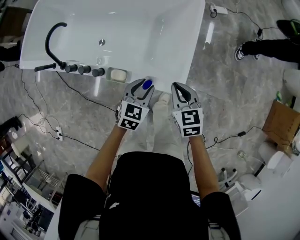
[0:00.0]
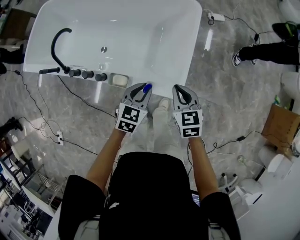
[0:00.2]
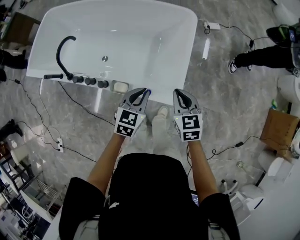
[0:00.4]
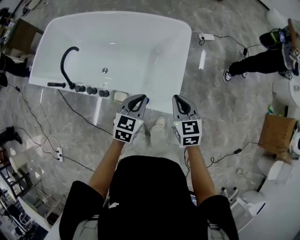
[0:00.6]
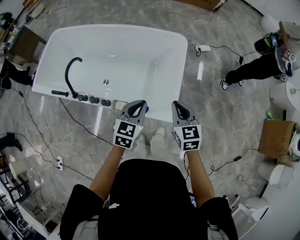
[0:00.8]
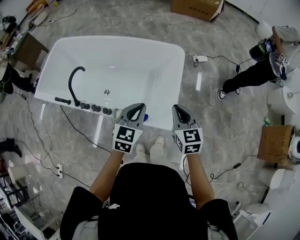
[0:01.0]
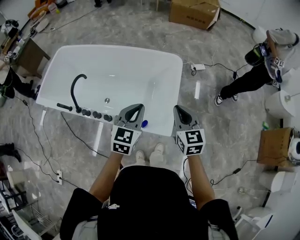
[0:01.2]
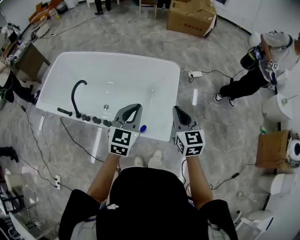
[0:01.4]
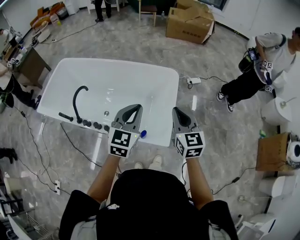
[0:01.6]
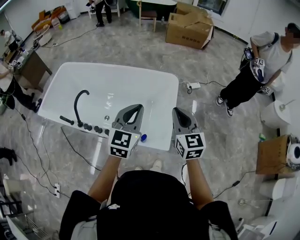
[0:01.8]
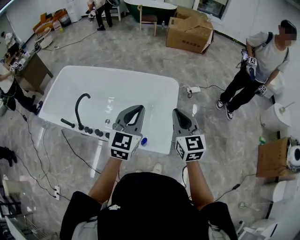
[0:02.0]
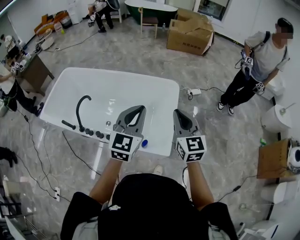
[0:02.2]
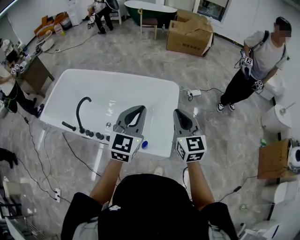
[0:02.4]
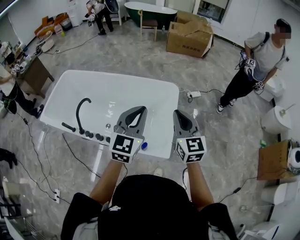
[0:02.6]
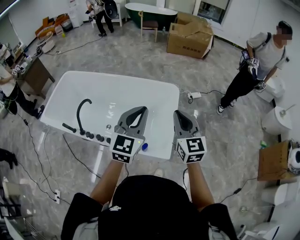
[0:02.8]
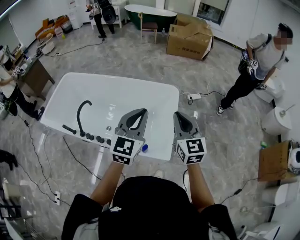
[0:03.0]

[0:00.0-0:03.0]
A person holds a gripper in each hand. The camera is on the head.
0:00.0 to 0:01.6: The grippers both shift upward by some 35 cm. The left gripper swivels about 30 degrees, and closes up. Meanwhile the right gripper turns by roughly 30 degrees.
0:01.6 to 0:03.0: Both grippers move upward, about 5 cm.

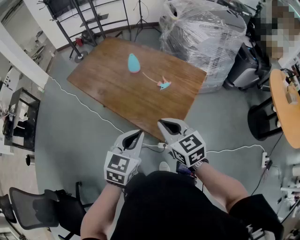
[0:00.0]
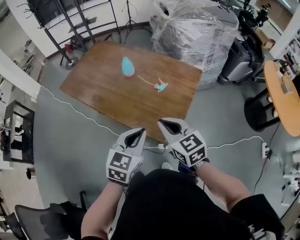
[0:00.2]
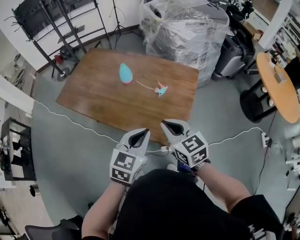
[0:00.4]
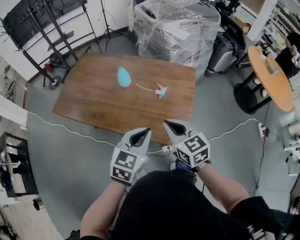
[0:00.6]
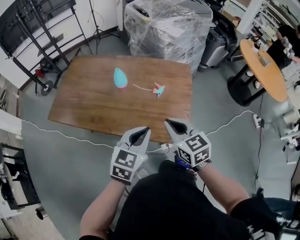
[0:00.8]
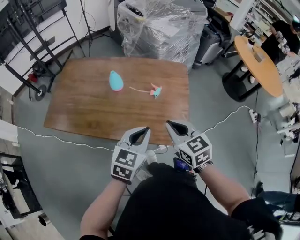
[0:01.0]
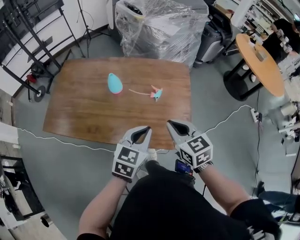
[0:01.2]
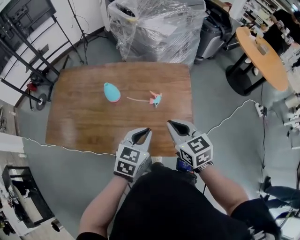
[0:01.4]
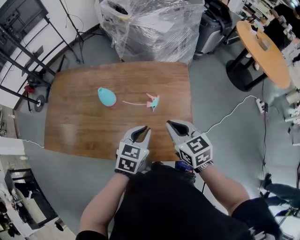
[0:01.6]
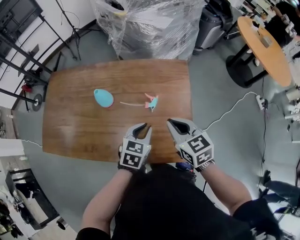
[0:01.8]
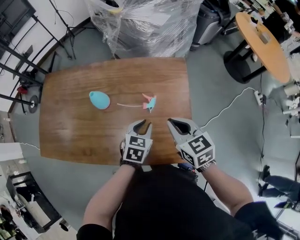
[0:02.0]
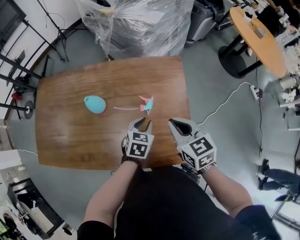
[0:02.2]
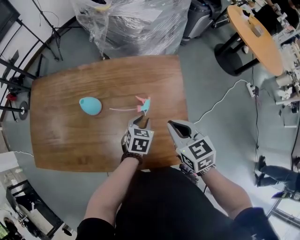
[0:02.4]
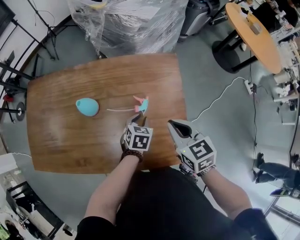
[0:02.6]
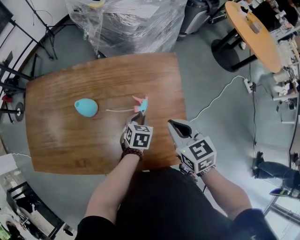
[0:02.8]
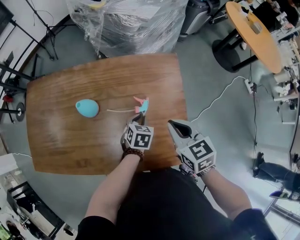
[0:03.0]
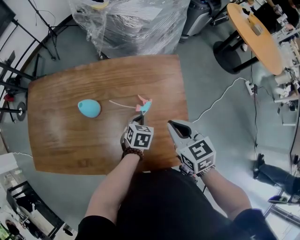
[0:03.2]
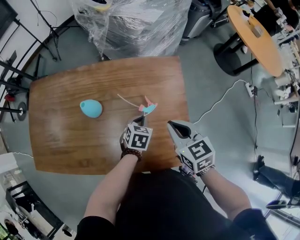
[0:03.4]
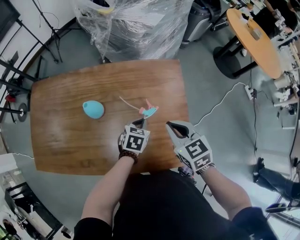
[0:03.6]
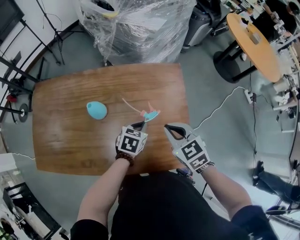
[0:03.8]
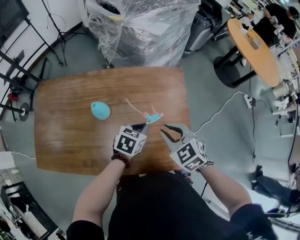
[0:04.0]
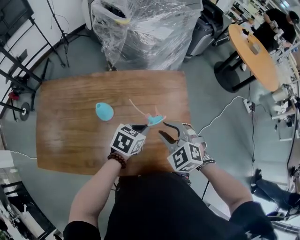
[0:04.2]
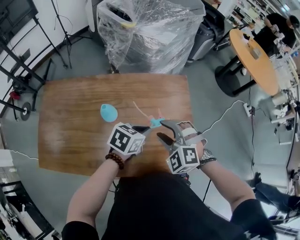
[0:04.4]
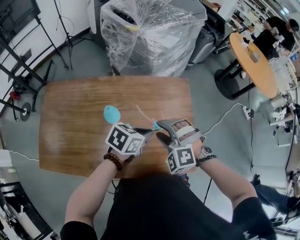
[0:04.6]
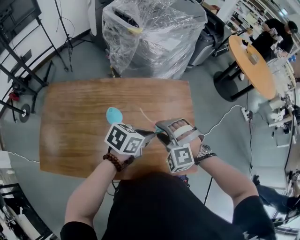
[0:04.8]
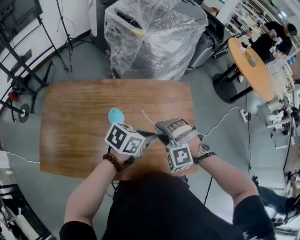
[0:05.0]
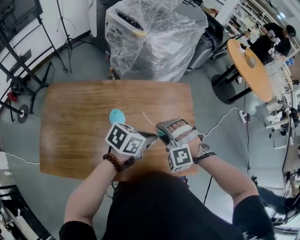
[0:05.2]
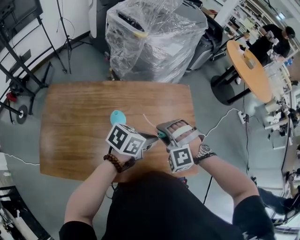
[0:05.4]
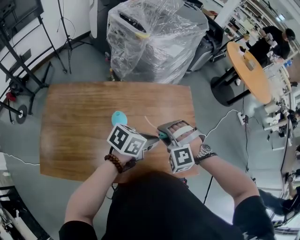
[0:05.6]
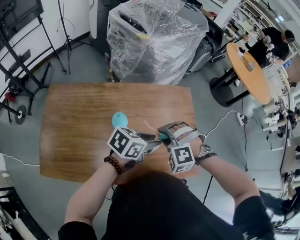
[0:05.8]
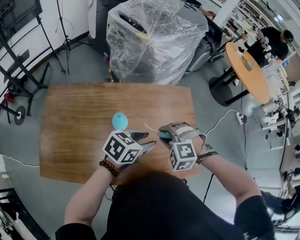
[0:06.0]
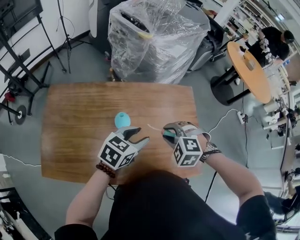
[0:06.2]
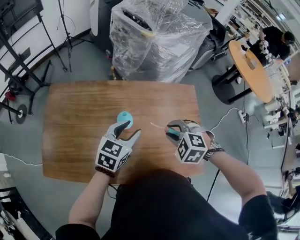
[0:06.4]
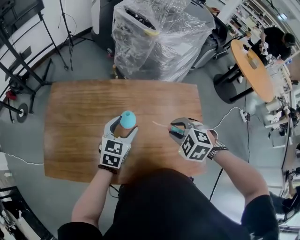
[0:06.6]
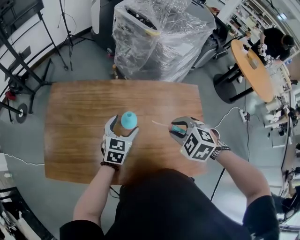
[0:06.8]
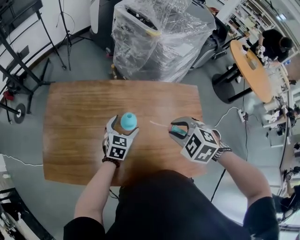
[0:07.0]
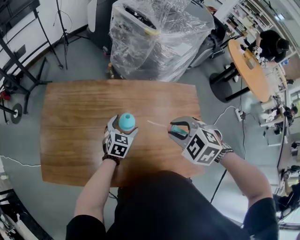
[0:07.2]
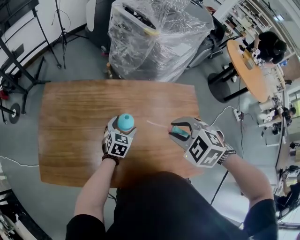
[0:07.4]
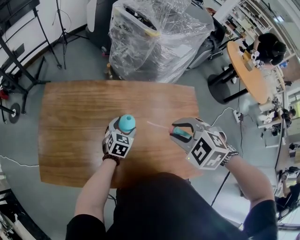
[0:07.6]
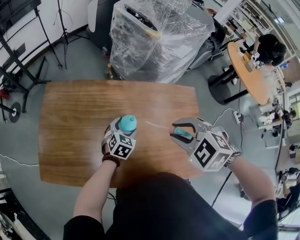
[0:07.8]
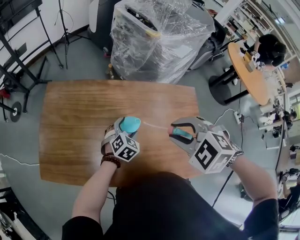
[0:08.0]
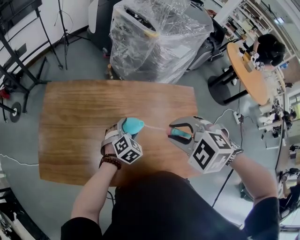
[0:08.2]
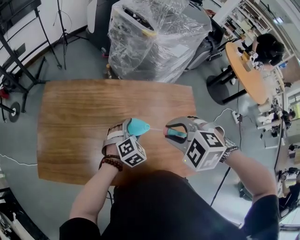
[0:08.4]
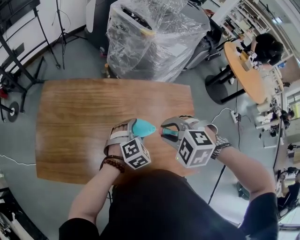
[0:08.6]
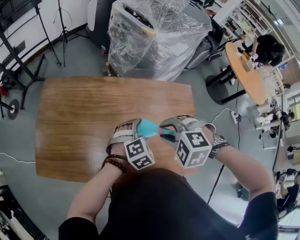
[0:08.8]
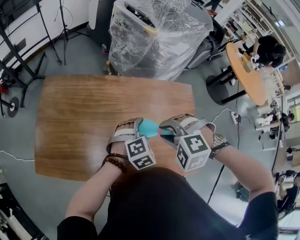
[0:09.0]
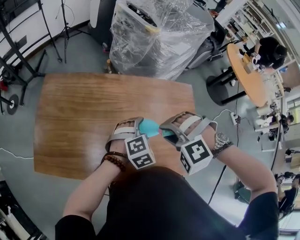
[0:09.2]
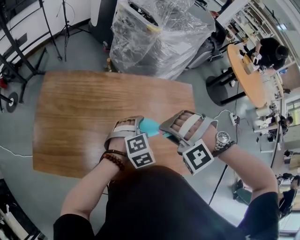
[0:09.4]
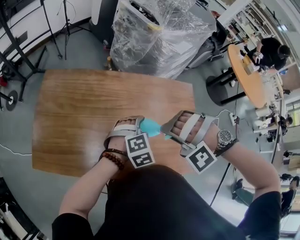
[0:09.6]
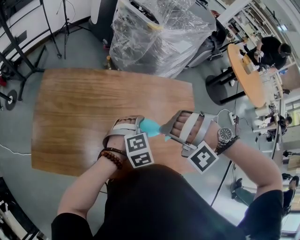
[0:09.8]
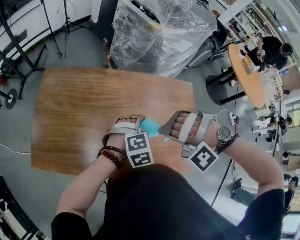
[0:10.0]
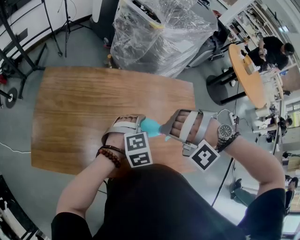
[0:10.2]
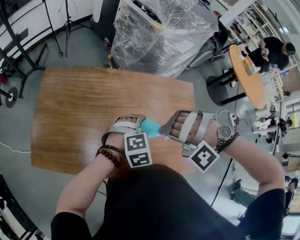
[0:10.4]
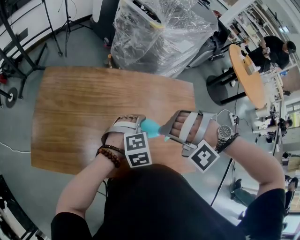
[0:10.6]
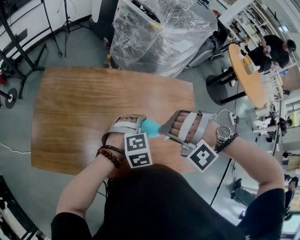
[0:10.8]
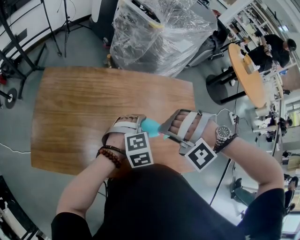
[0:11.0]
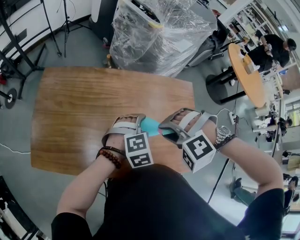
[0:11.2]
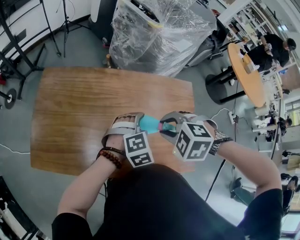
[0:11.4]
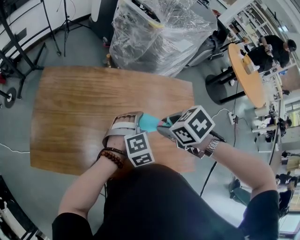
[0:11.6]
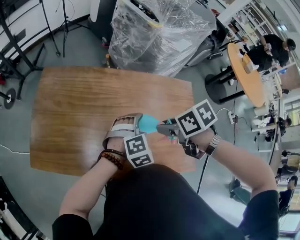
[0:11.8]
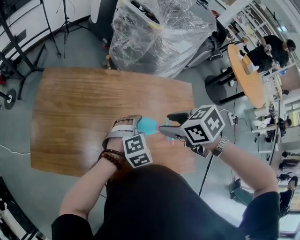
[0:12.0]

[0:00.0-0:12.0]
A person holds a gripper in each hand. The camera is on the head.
0:00.0 to 0:01.6: The left gripper moves approximately 25 cm, and turns by approximately 30 degrees. The right gripper moves approximately 15 cm, and turns by some 30 degrees.
0:01.6 to 0:03.0: The right gripper shifts by some 5 cm. Meanwhile the left gripper travels downward and forward by roughly 20 cm.
0:03.0 to 0:04.4: The left gripper is displaced upward by roughly 15 cm, and rotates some 30 degrees; the right gripper shifts roughly 10 cm to the left, rotates around the line of its fingers by some 60 degrees, counterclockwise from behind, and opens its fingers.
0:04.4 to 0:06.0: The left gripper travels upward by roughly 5 cm, and opens. The right gripper goes roughly 5 cm to the left, and swivels some 20 degrees.
0:06.0 to 0:07.6: The right gripper shifts some 10 cm upward, and changes its angle by roughly 20 degrees; the left gripper moves downward, roughly 15 cm, rotates roughly 40 degrees, and opens its fingers.
0:07.6 to 0:09.0: The left gripper goes some 15 cm upward, backward and to the right, and swivels approximately 40 degrees, while the right gripper rotates roughly 30 degrees.
0:09.0 to 0:10.4: The right gripper rotates around the line of its fingers by about 50 degrees, counterclockwise from behind.
0:10.4 to 0:12.0: The right gripper shifts by about 5 cm, rolls clockwise, seen from behind, by about 120 degrees, and opens.

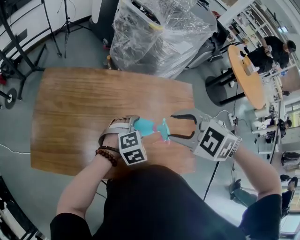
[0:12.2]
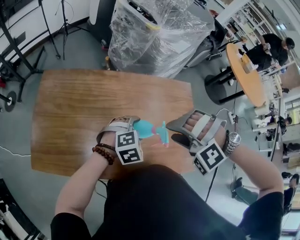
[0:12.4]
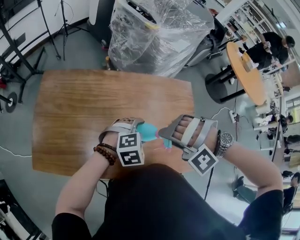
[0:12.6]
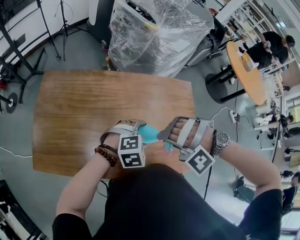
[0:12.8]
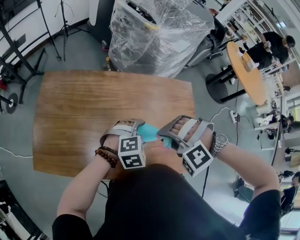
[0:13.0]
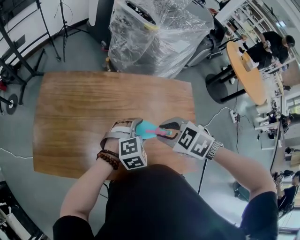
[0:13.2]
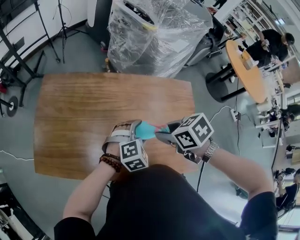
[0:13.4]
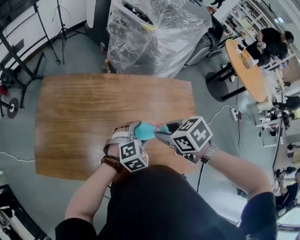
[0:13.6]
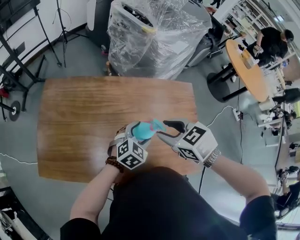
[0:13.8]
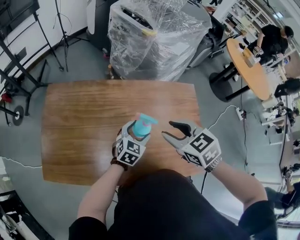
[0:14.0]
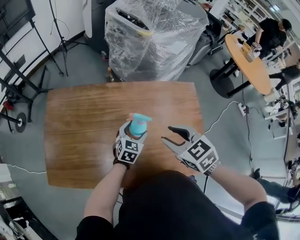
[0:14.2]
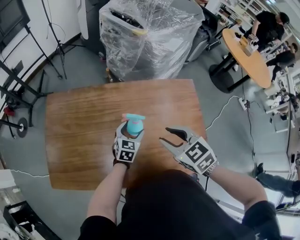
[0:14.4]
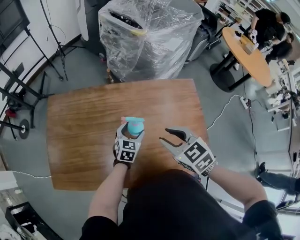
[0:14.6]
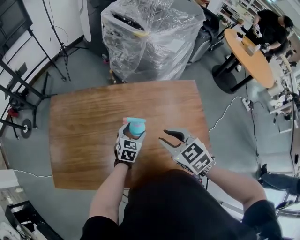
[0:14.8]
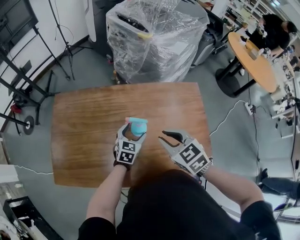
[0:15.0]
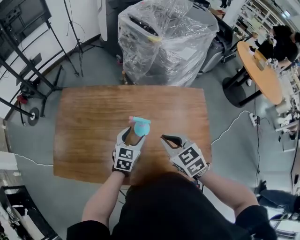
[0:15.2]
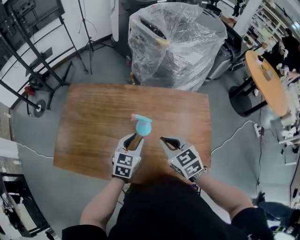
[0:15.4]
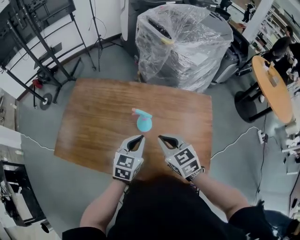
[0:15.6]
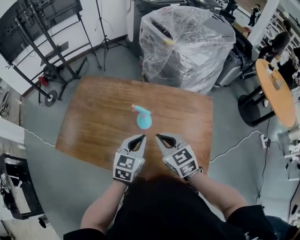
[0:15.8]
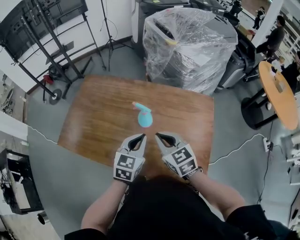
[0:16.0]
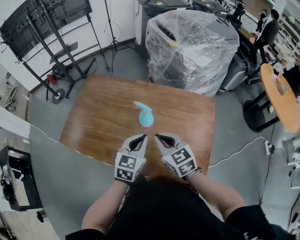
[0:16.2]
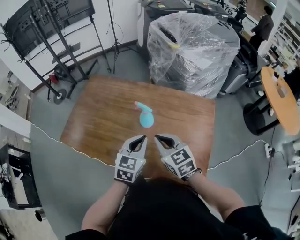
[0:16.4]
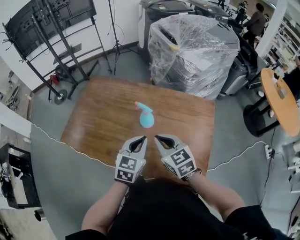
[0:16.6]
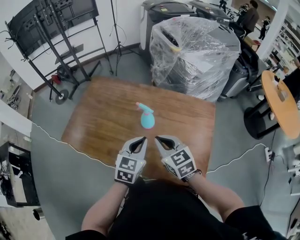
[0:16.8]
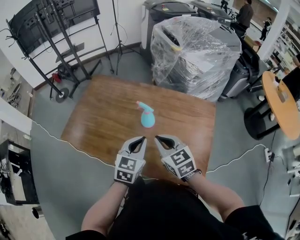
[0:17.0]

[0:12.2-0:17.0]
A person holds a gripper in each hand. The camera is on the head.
0:12.2 to 0:13.8: The right gripper moves downward, approximately 5 cm, and changes its angle by approximately 40 degrees. The left gripper rotates approximately 20 degrees.
0:13.8 to 0:15.4: The left gripper is displaced to the left by some 5 cm, goes downward and returns, roughly 5 cm each way, changes its angle by about 30 degrees, and closes its fingers, while the right gripper closes.
0:15.4 to 0:17.0: The left gripper shifts about 10 cm backward and upward; the right gripper shifts about 5 cm backward.

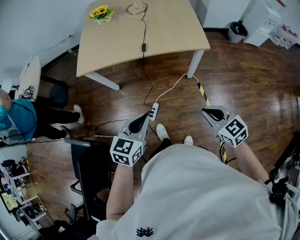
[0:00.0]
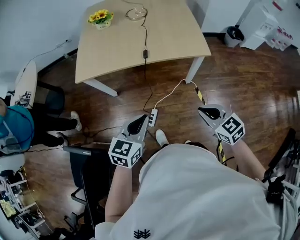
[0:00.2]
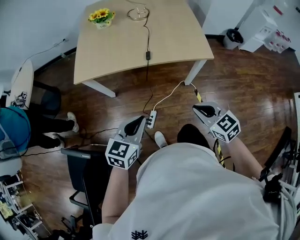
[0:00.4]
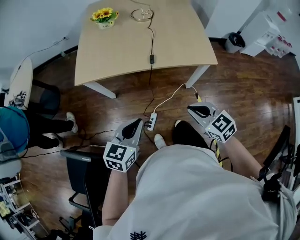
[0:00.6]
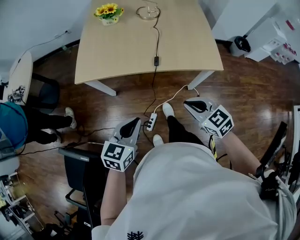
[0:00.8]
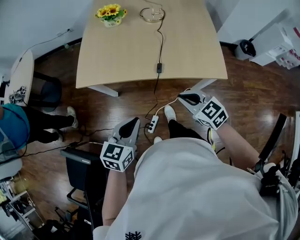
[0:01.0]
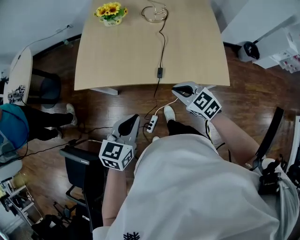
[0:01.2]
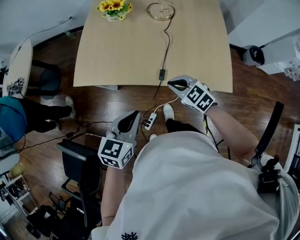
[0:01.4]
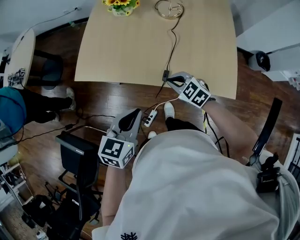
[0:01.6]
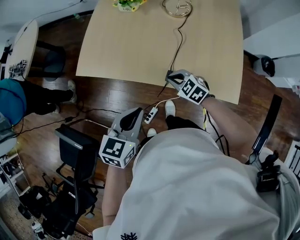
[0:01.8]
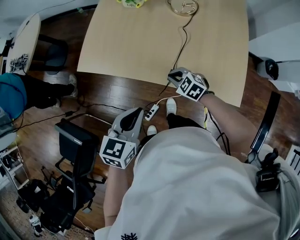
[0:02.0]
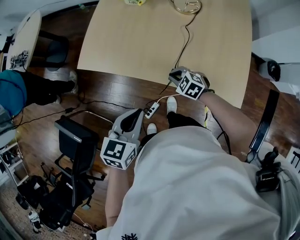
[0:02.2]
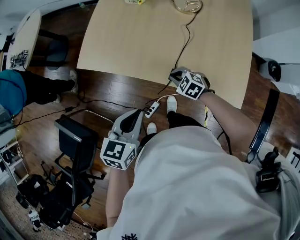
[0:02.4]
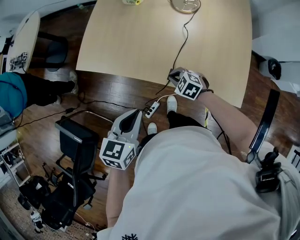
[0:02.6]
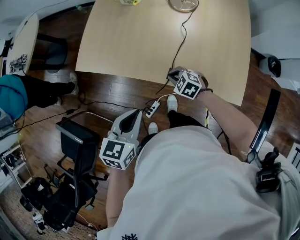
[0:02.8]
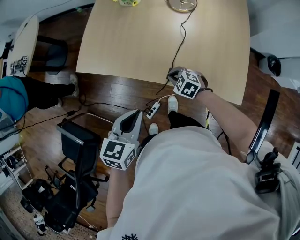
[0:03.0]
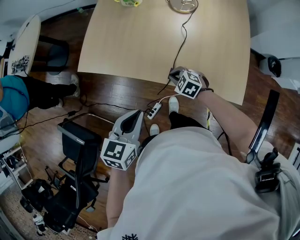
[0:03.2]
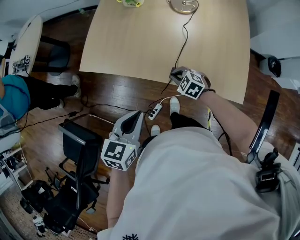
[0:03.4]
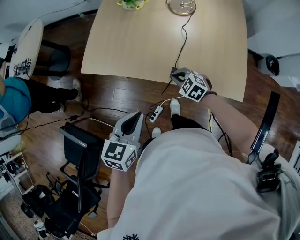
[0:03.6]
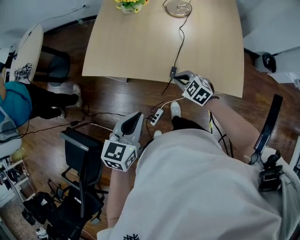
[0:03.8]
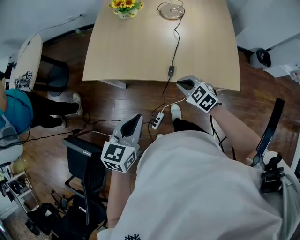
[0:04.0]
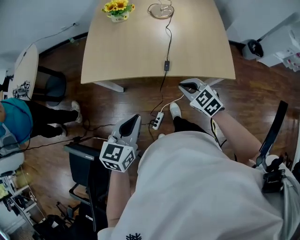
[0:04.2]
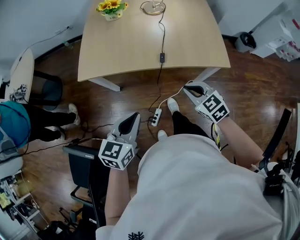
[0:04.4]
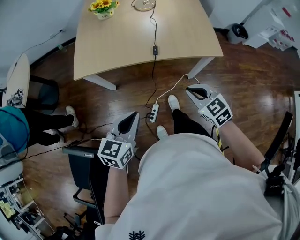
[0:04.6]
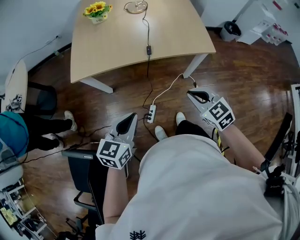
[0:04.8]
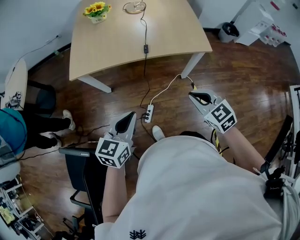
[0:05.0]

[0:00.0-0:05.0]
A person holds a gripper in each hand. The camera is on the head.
0:00.0 to 0:01.6: The left gripper heads forward, covering approximately 30 cm. The right gripper moves forward, some 40 cm, and swivels about 30 degrees.
0:01.6 to 0:03.4: The right gripper shifts roughly 10 cm downward.
0:03.4 to 0:05.0: The right gripper shifts by approximately 40 cm, and changes its angle by some 40 degrees; the left gripper shifts by approximately 20 cm, and turns by roughly 20 degrees.
